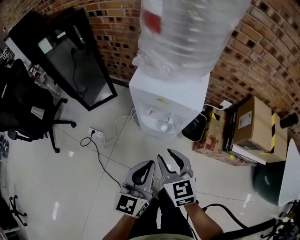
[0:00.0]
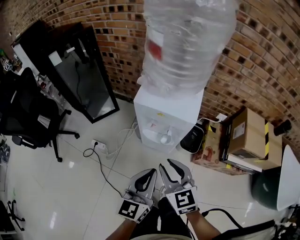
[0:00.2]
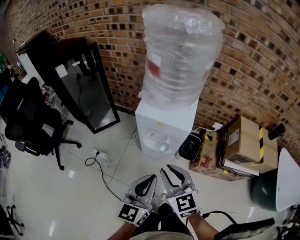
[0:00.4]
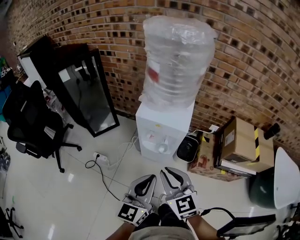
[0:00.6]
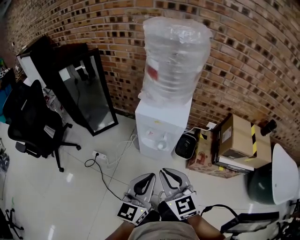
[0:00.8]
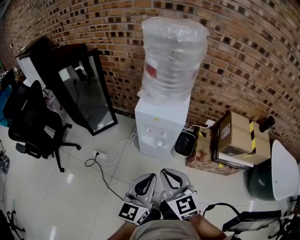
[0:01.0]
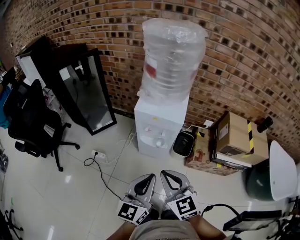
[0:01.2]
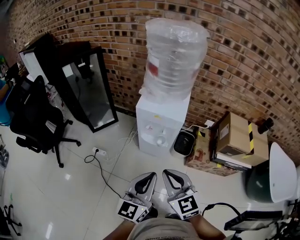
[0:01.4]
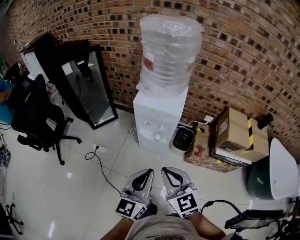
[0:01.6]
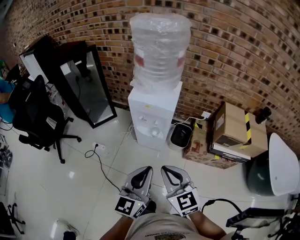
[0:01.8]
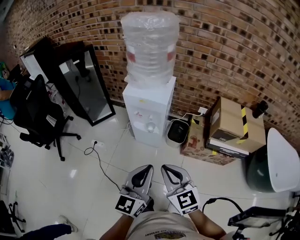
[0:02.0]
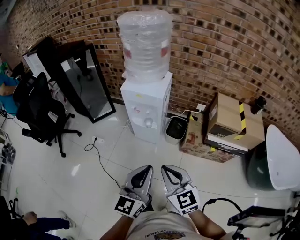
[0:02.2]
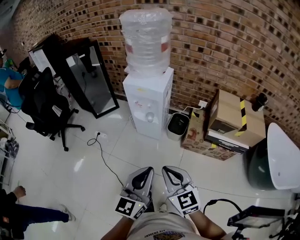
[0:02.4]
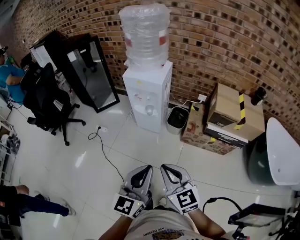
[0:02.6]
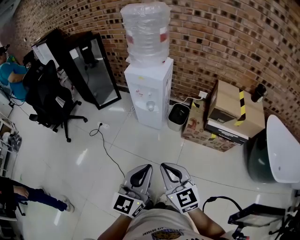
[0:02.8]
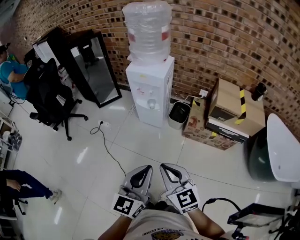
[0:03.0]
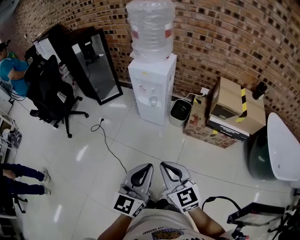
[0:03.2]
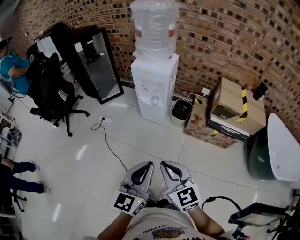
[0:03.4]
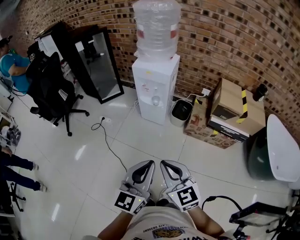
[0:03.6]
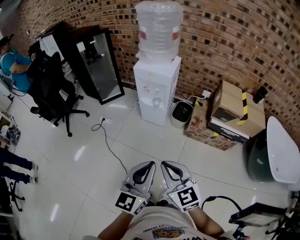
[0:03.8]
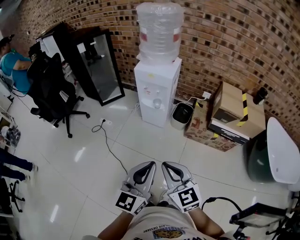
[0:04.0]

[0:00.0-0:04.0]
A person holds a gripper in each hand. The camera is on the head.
0:00.0 to 0:01.4: The two grippers go some 20 cm upward and backward. The right gripper closes its fingers.
0:01.4 to 0:02.6: Both grippers travel together backward and to the right, roughly 25 cm.
0:02.6 to 0:04.0: Both grippers travel together to the left, some 5 cm.

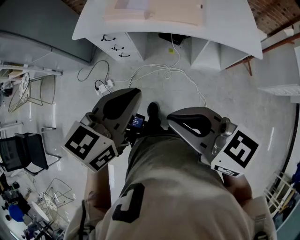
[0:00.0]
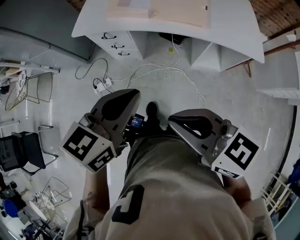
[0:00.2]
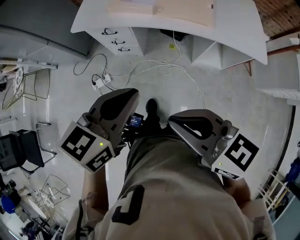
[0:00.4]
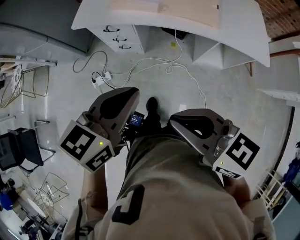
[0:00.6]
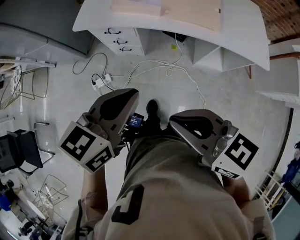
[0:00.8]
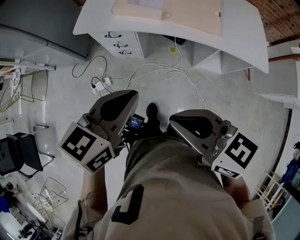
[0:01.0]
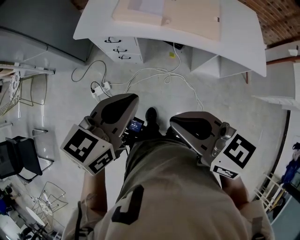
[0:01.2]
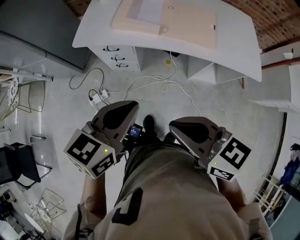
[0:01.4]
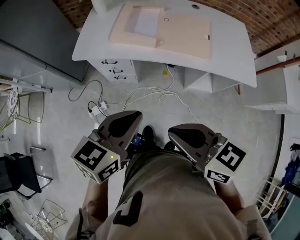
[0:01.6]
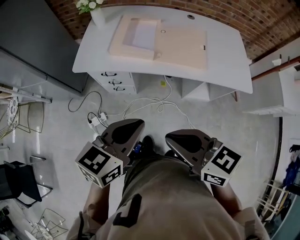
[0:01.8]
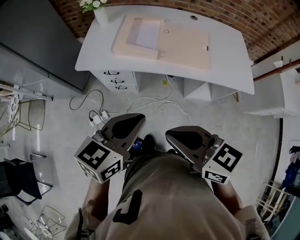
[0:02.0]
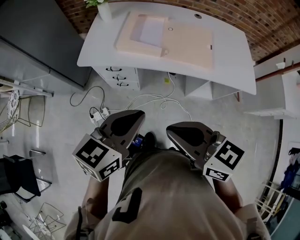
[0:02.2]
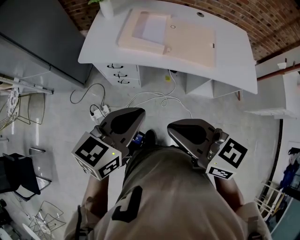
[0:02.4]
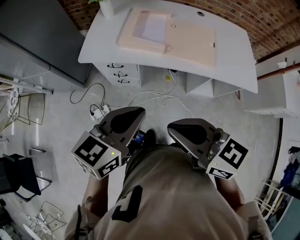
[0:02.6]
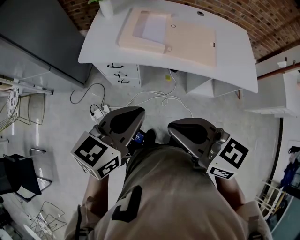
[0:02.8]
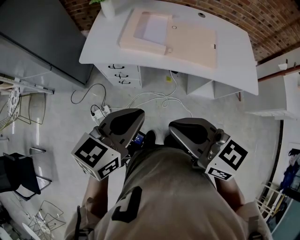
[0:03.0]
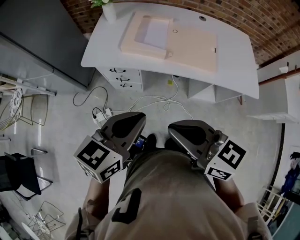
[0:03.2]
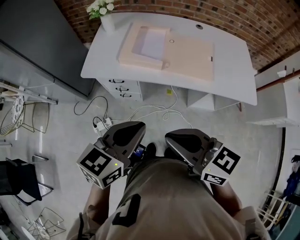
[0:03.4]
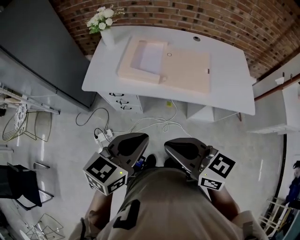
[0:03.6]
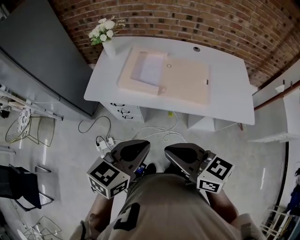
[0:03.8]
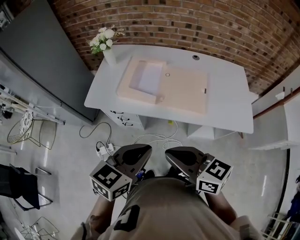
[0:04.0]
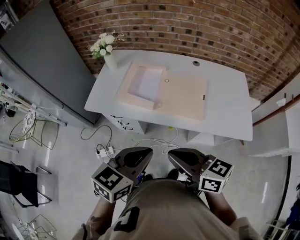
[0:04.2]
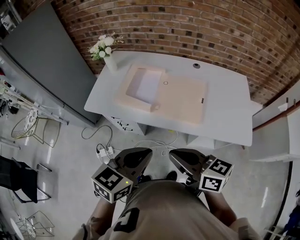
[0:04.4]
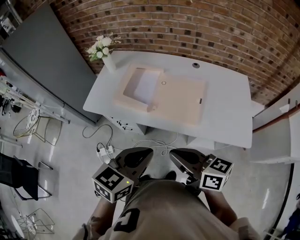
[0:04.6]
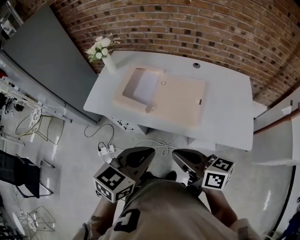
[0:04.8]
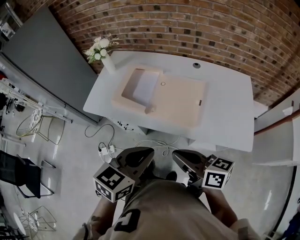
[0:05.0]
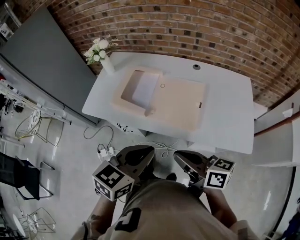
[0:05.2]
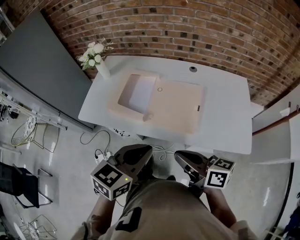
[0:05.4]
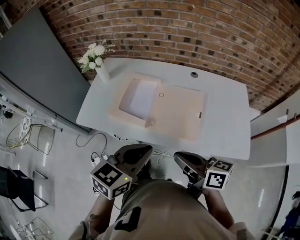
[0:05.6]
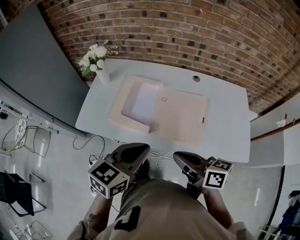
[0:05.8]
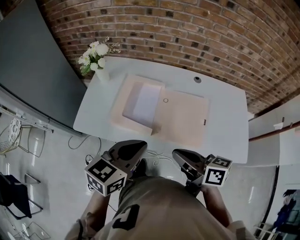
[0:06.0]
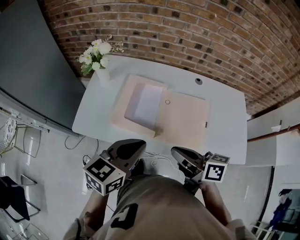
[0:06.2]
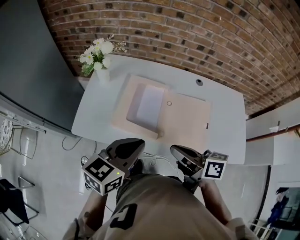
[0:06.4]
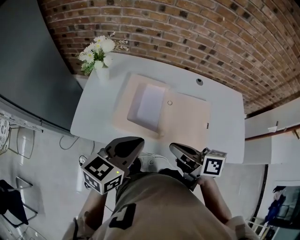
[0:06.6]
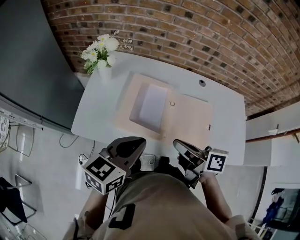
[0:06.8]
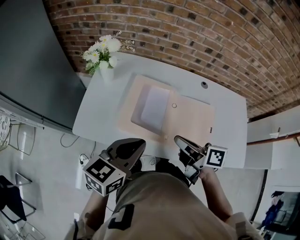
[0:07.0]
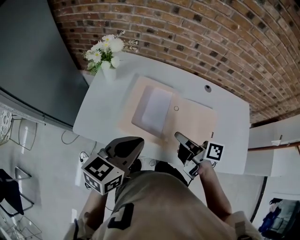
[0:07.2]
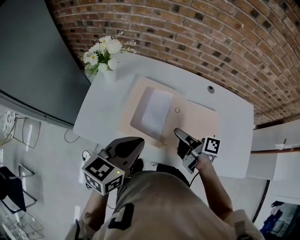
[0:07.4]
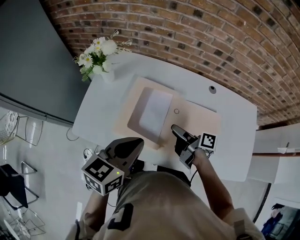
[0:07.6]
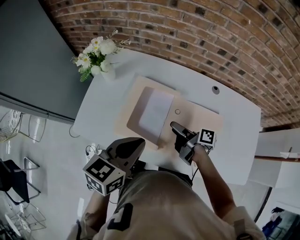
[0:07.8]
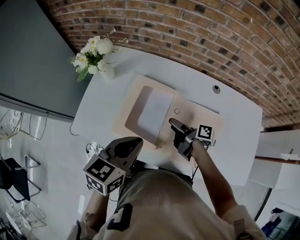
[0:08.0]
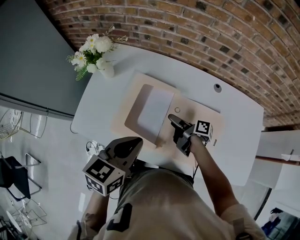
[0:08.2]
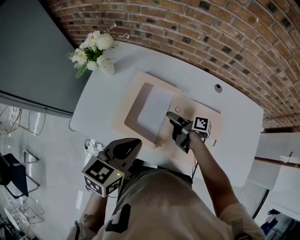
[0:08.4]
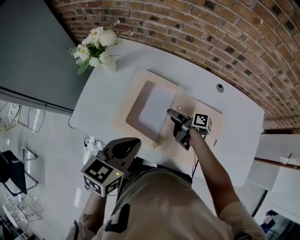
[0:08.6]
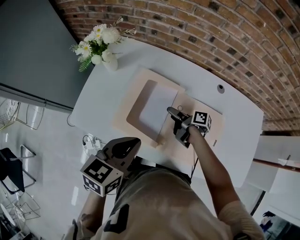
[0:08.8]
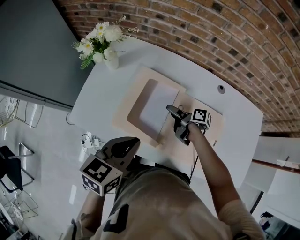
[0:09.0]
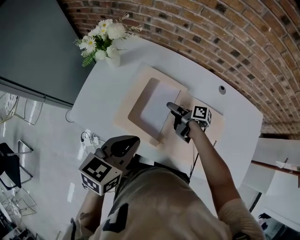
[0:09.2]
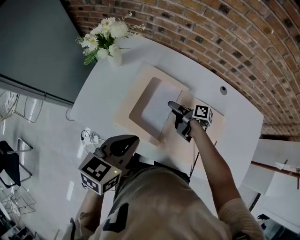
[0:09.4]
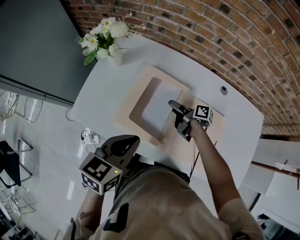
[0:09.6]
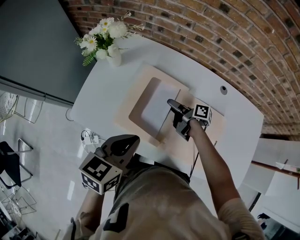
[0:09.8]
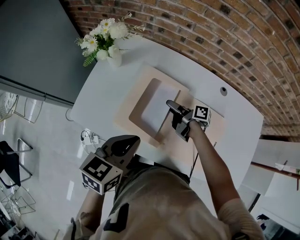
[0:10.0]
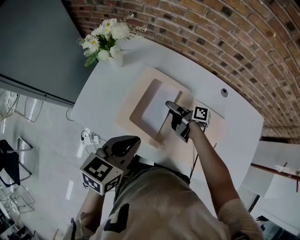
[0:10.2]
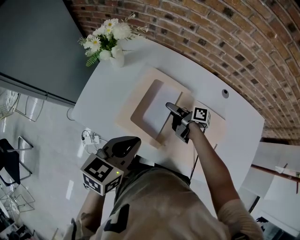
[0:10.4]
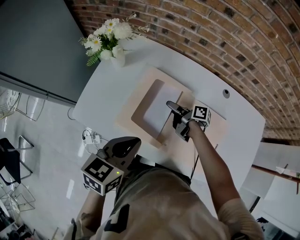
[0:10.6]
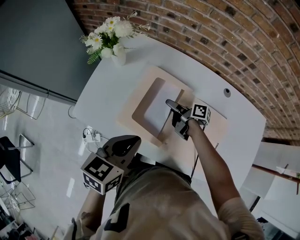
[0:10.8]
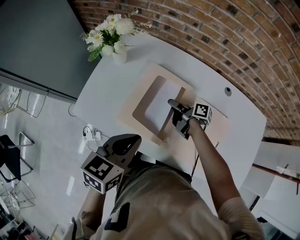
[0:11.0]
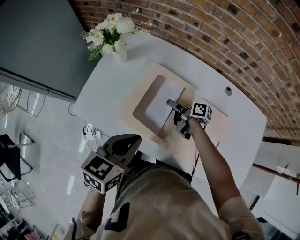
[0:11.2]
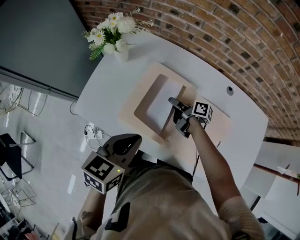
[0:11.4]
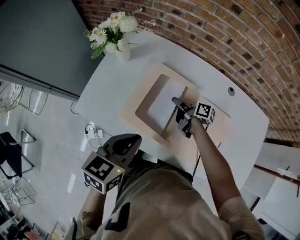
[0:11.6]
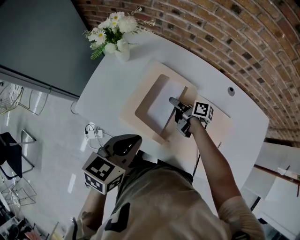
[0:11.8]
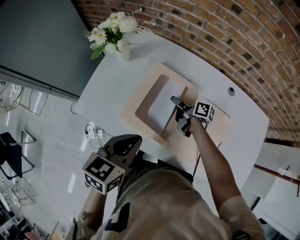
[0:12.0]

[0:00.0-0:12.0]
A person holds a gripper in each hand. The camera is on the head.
0:00.0 to 0:01.6: Both grippers move forward and to the left, approximately 15 cm.
0:01.6 to 0:03.0: The right gripper moves about 5 cm.
0:03.0 to 0:04.4: The right gripper shifts some 20 cm to the right and forward. Meanwhile the left gripper travels to the right by some 15 cm.
0:04.4 to 0:06.0: Both grippers travel together forward, about 15 cm.
0:06.0 to 0:07.6: The left gripper heads forward, covering about 10 cm; the right gripper travels forward and downward by roughly 25 cm, changes its angle by approximately 40 degrees, and opens its fingers.
0:07.6 to 0:09.0: The right gripper travels downward and forward by about 10 cm.
0:09.0 to 0:10.4: The grippers make only small movements.
0:10.4 to 0:12.0: The right gripper closes.

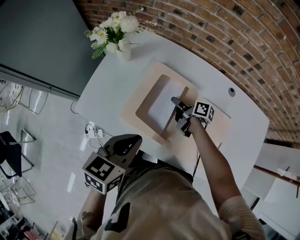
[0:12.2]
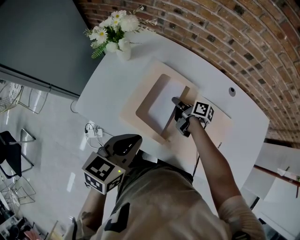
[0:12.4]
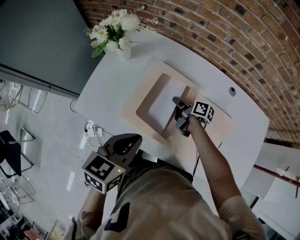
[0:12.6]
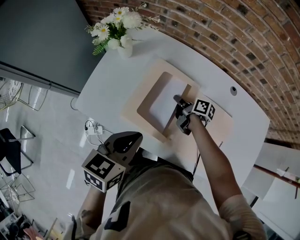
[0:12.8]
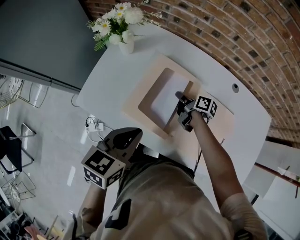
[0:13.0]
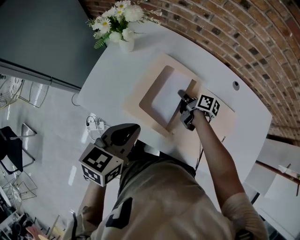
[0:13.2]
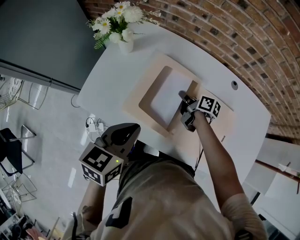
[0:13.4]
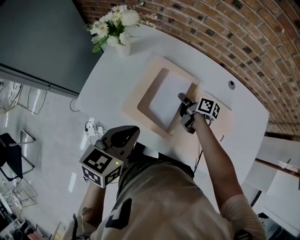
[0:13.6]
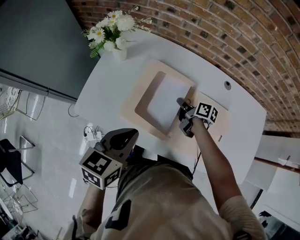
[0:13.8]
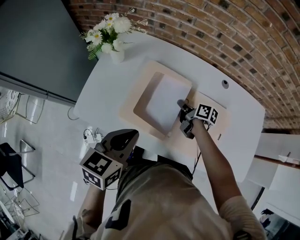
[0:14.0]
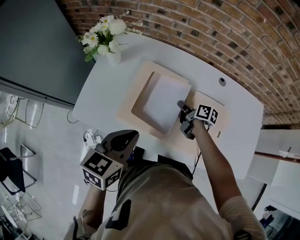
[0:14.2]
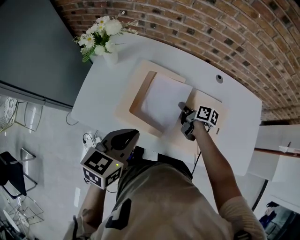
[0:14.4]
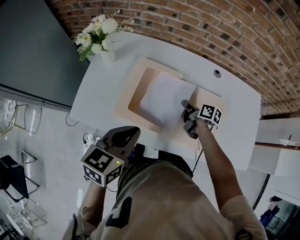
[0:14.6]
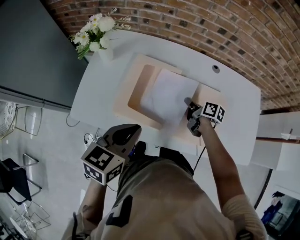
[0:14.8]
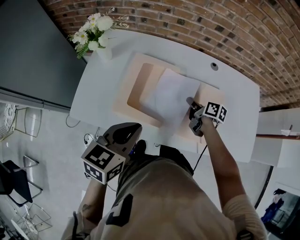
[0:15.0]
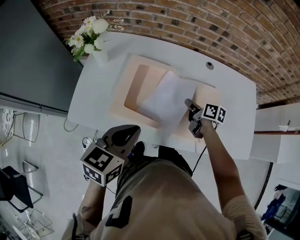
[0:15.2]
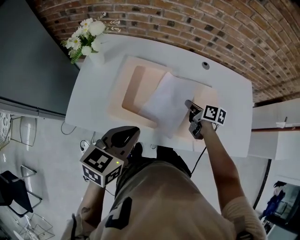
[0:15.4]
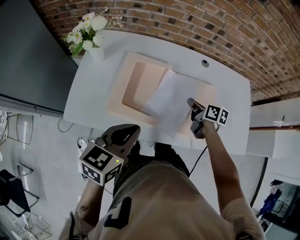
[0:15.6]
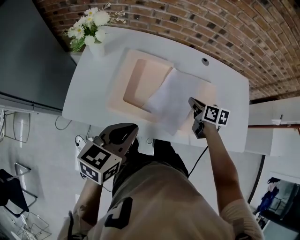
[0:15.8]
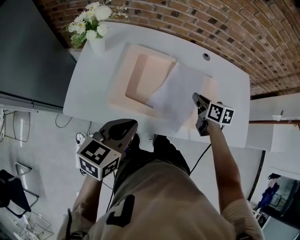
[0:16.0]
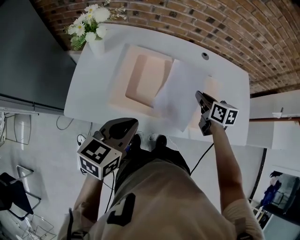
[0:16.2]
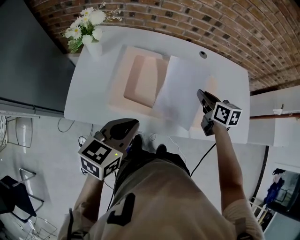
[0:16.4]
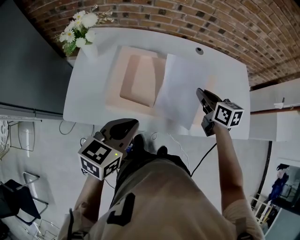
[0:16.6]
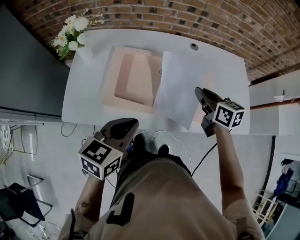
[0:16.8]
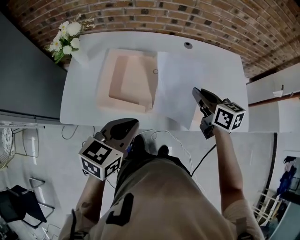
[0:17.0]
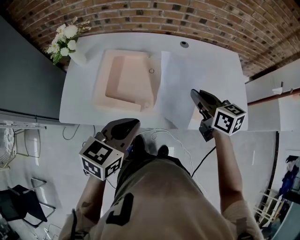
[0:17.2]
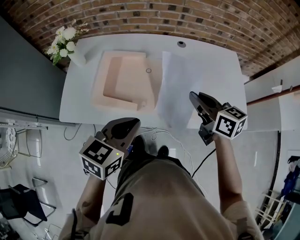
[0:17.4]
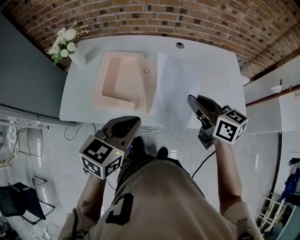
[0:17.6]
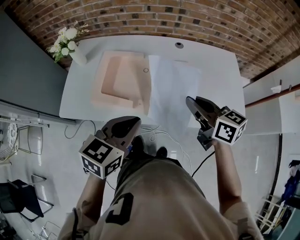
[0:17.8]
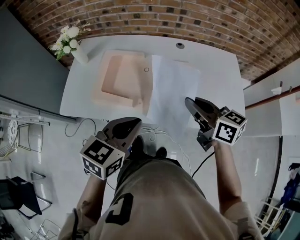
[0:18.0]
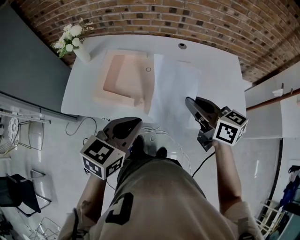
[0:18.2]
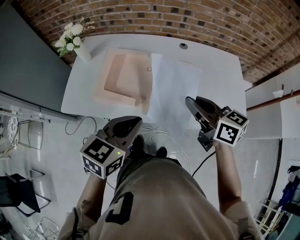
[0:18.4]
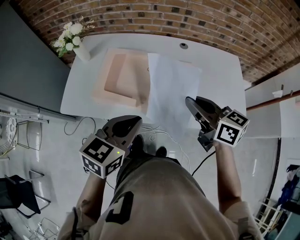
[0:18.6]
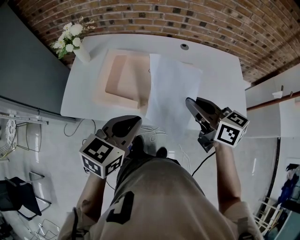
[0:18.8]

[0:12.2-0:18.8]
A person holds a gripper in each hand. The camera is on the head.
0:12.2 to 0:13.8: There are only small adjustments of the grippers.
0:13.8 to 0:15.4: The right gripper shifts some 15 cm to the right and backward, while the left gripper ends up about 5 cm from where it was.
0:15.4 to 0:17.2: The right gripper moves upward and backward, about 20 cm, and turns by about 30 degrees; the left gripper moves to the right, approximately 10 cm.
0:17.2 to 0:18.8: The right gripper goes about 10 cm backward and upward.

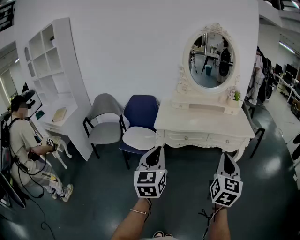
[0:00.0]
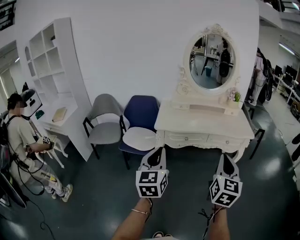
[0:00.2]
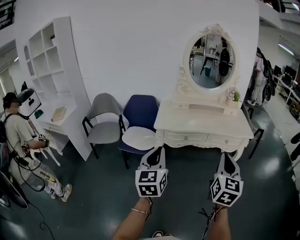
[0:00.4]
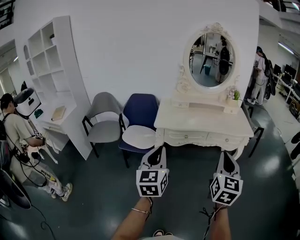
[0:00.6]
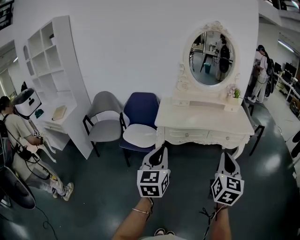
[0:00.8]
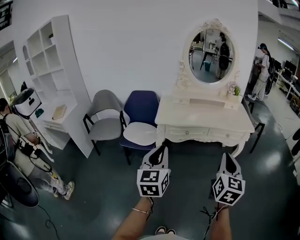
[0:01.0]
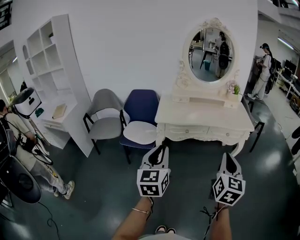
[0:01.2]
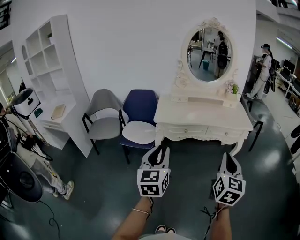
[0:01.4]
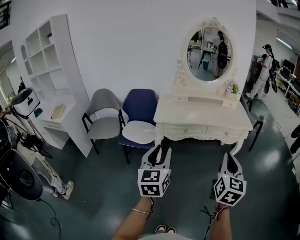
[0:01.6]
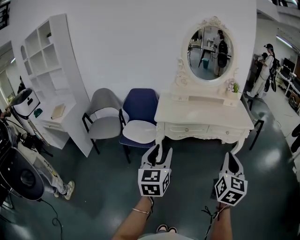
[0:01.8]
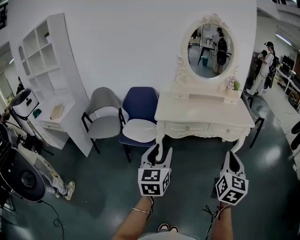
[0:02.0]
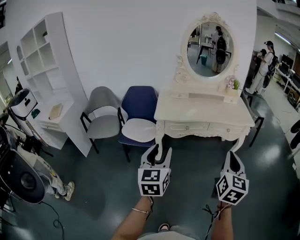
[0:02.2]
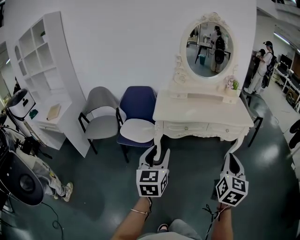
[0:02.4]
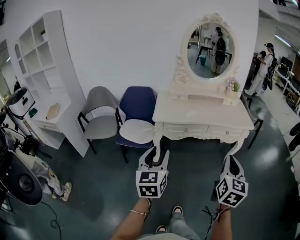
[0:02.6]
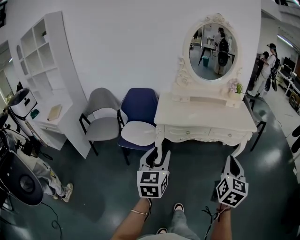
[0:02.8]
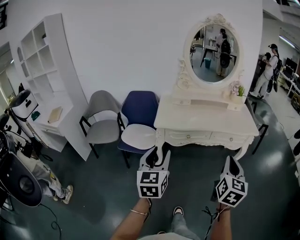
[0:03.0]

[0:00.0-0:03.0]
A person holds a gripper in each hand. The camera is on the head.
0:00.0 to 0:01.6: The left gripper opens up.
0:01.6 to 0:03.0: Both grippers move forward, roughly 10 cm.
